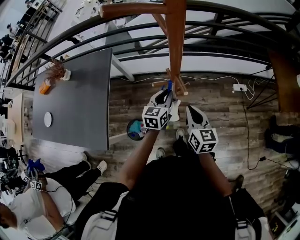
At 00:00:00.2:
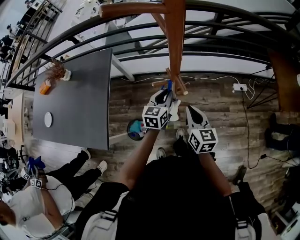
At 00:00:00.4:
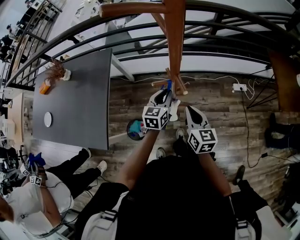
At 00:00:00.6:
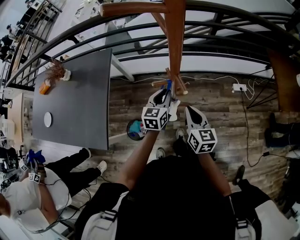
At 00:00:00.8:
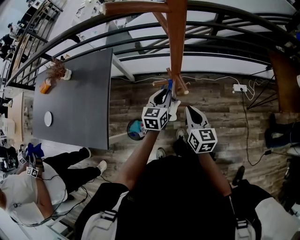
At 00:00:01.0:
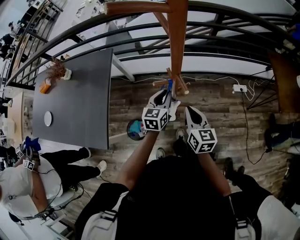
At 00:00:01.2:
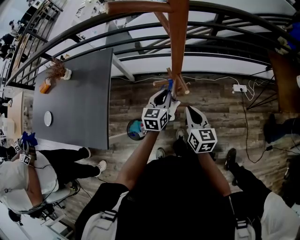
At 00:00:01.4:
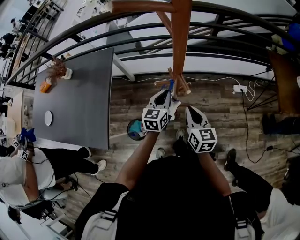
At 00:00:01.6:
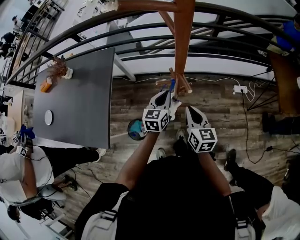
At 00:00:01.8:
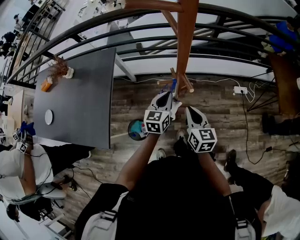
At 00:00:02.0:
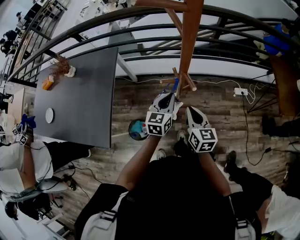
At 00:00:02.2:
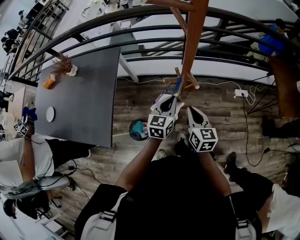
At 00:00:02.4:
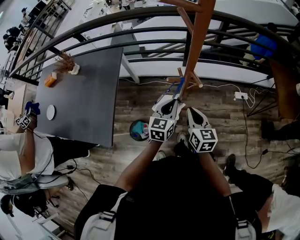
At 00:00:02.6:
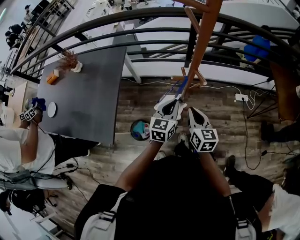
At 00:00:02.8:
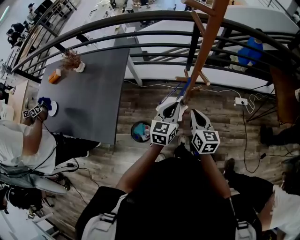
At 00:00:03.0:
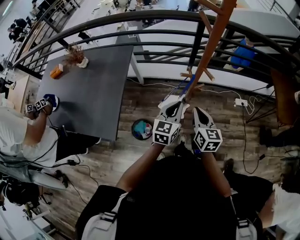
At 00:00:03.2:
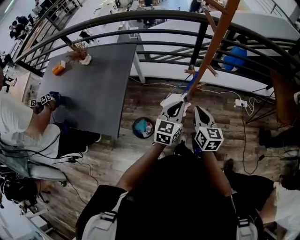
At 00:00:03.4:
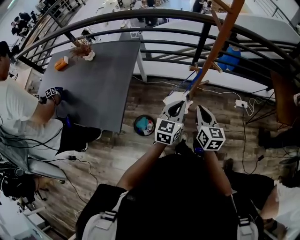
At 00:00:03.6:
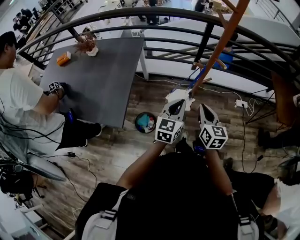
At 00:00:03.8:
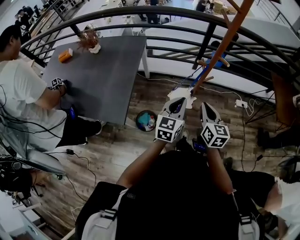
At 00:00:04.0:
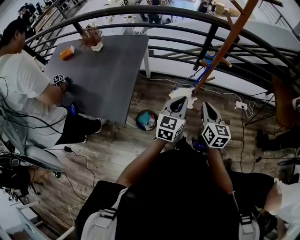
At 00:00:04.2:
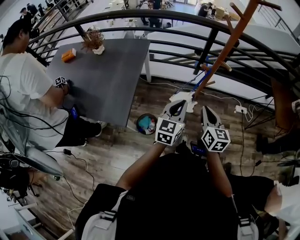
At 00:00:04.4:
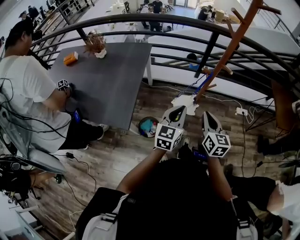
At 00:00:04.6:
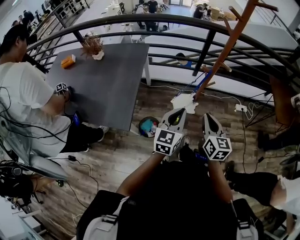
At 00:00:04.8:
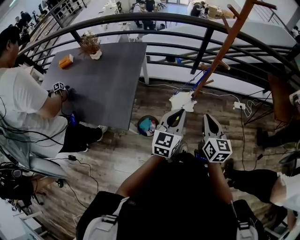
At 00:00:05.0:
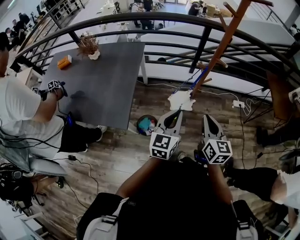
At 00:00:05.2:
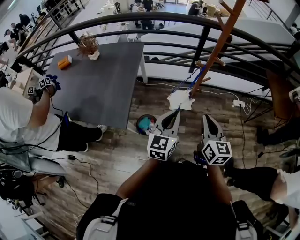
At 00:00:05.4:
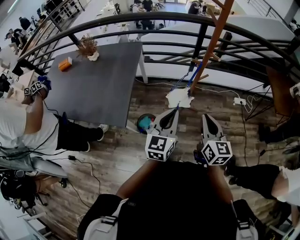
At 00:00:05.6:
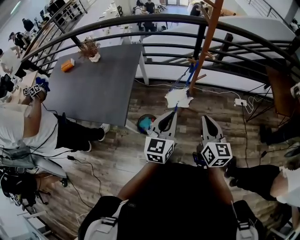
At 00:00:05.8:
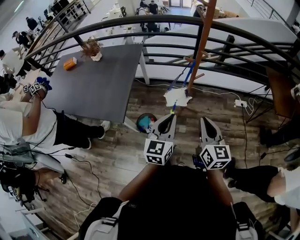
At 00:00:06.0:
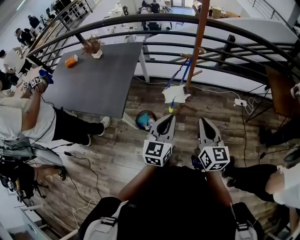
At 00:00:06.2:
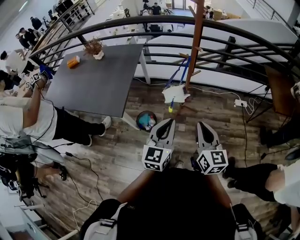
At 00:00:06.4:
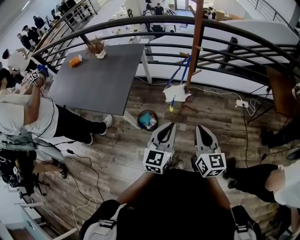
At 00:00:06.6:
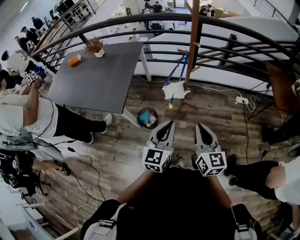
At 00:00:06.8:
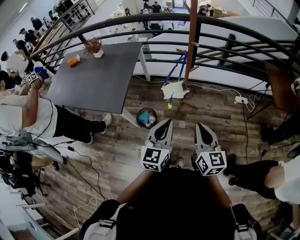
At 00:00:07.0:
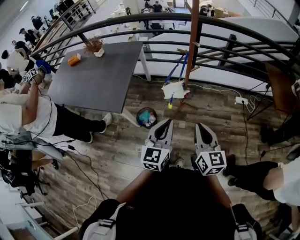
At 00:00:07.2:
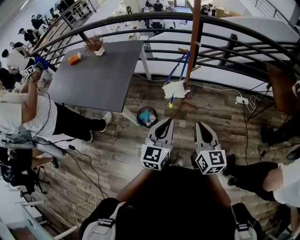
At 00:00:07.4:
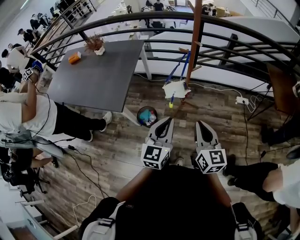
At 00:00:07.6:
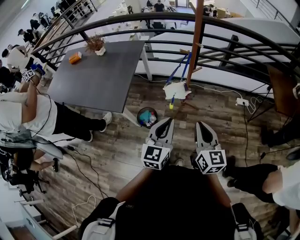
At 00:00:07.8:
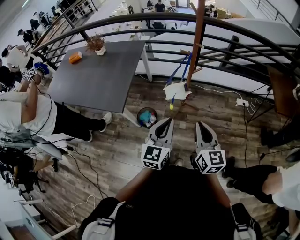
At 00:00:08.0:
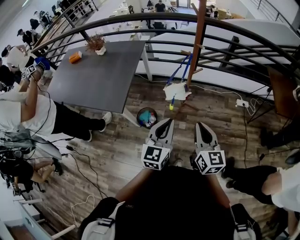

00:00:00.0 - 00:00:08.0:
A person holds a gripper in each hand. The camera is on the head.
00:00:00.0 - 00:00:01.6: The grippers move only a little.
00:00:01.6 - 00:00:03.2: The left gripper shifts approximately 15 cm backward and upward; the right gripper is displaced backward and to the left by about 10 cm.
00:00:03.2 - 00:00:04.8: The left gripper is displaced backward, to the left and upward by roughly 15 cm; the right gripper shifts about 10 cm backward and upward.
00:00:04.8 - 00:00:06.4: Both grippers travel together backward and to the right, approximately 15 cm.
00:00:06.4 - 00:00:08.0: The grippers stay close to where they were, moving slightly.

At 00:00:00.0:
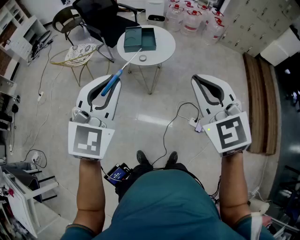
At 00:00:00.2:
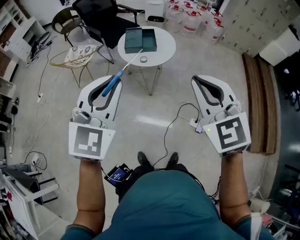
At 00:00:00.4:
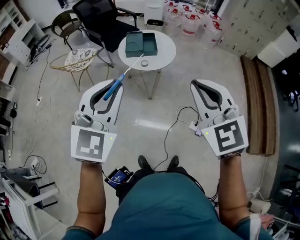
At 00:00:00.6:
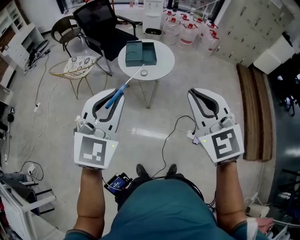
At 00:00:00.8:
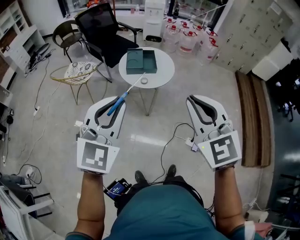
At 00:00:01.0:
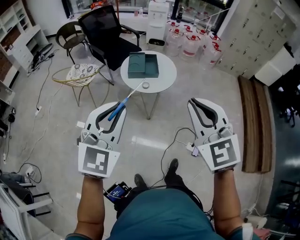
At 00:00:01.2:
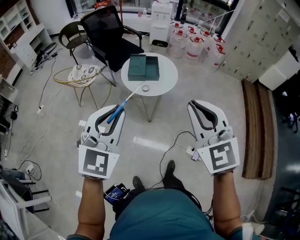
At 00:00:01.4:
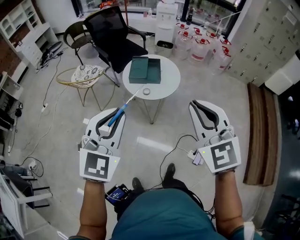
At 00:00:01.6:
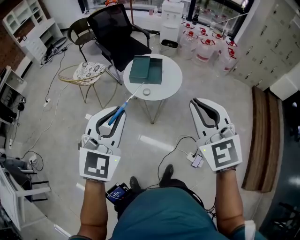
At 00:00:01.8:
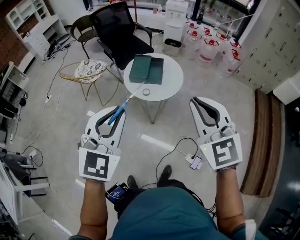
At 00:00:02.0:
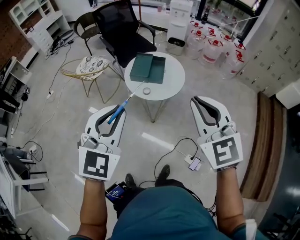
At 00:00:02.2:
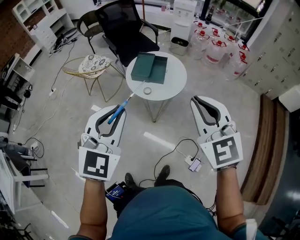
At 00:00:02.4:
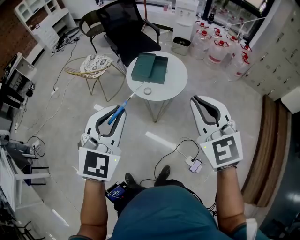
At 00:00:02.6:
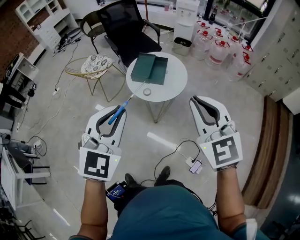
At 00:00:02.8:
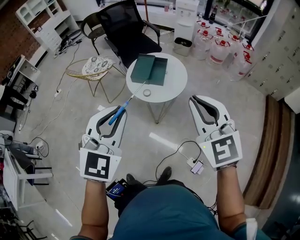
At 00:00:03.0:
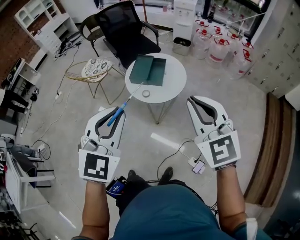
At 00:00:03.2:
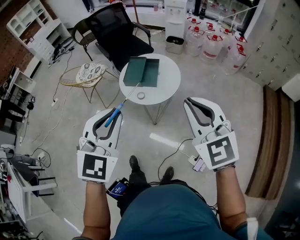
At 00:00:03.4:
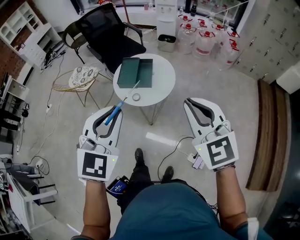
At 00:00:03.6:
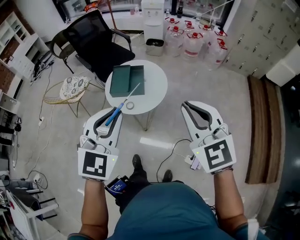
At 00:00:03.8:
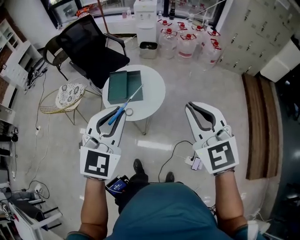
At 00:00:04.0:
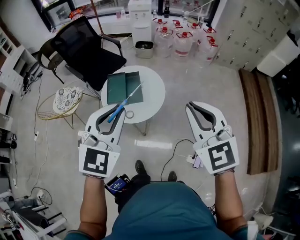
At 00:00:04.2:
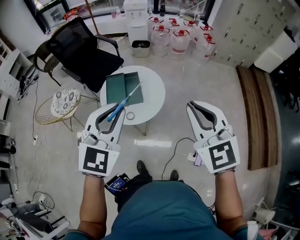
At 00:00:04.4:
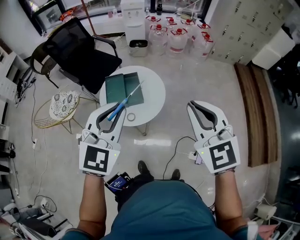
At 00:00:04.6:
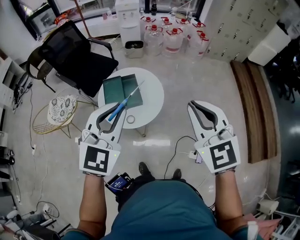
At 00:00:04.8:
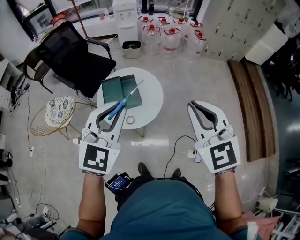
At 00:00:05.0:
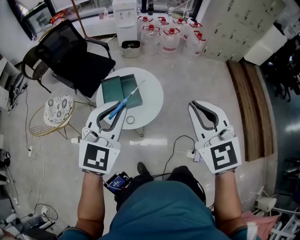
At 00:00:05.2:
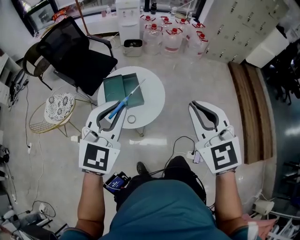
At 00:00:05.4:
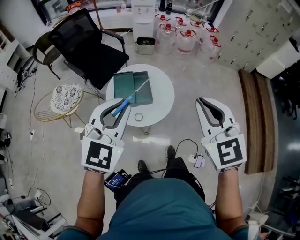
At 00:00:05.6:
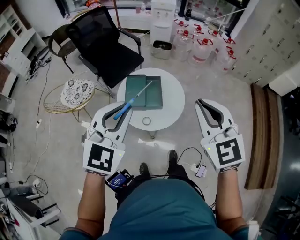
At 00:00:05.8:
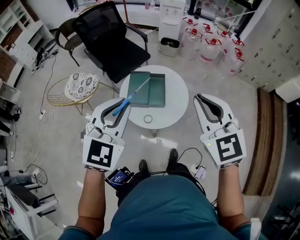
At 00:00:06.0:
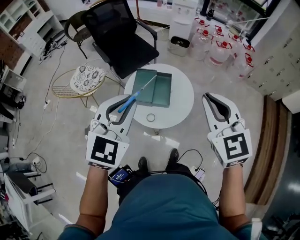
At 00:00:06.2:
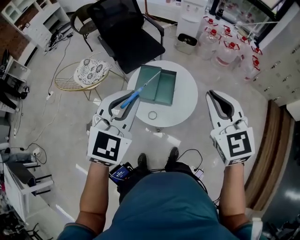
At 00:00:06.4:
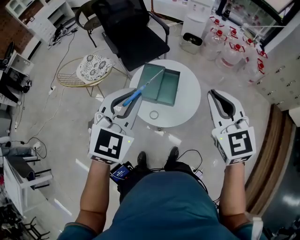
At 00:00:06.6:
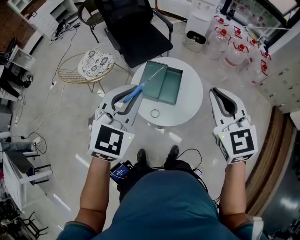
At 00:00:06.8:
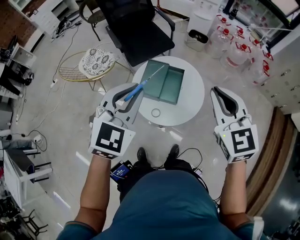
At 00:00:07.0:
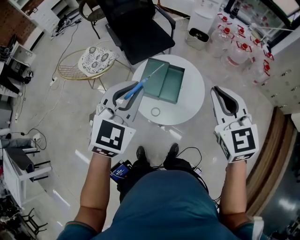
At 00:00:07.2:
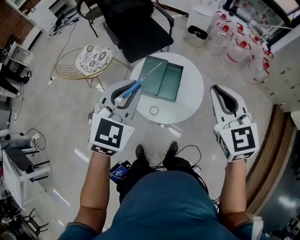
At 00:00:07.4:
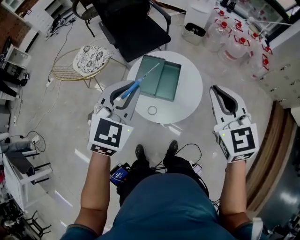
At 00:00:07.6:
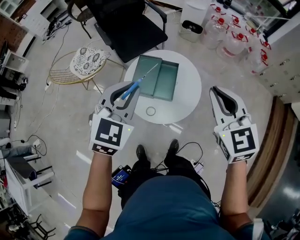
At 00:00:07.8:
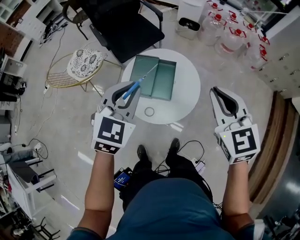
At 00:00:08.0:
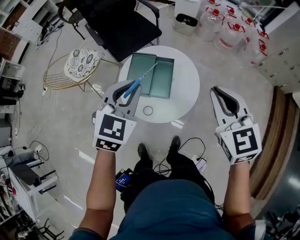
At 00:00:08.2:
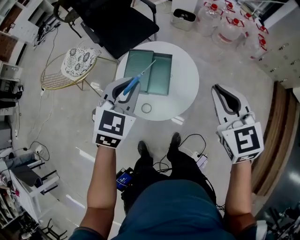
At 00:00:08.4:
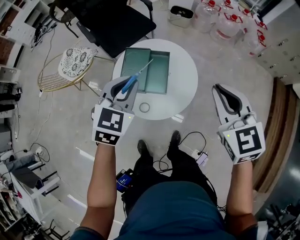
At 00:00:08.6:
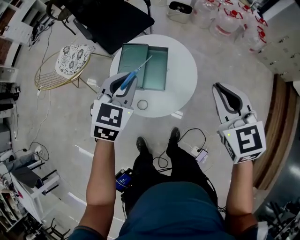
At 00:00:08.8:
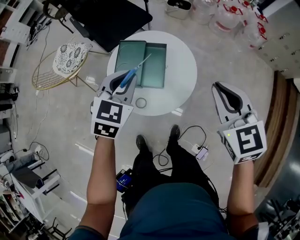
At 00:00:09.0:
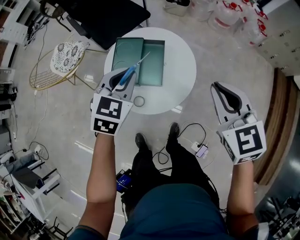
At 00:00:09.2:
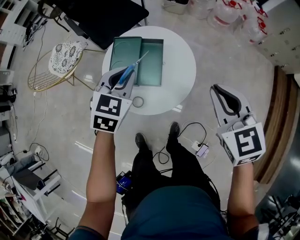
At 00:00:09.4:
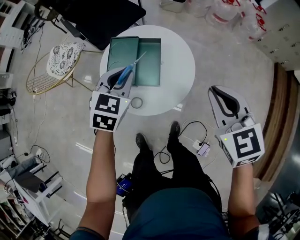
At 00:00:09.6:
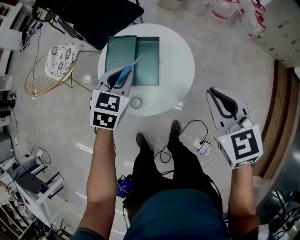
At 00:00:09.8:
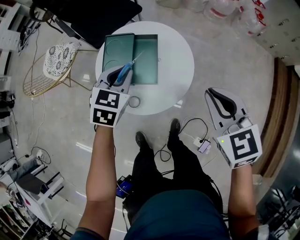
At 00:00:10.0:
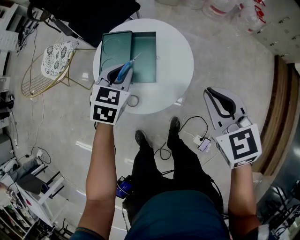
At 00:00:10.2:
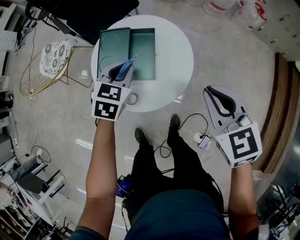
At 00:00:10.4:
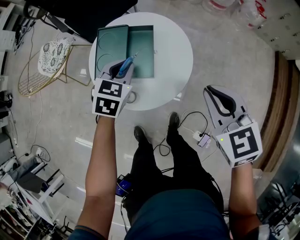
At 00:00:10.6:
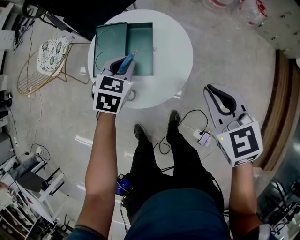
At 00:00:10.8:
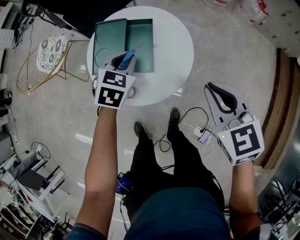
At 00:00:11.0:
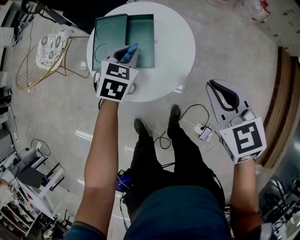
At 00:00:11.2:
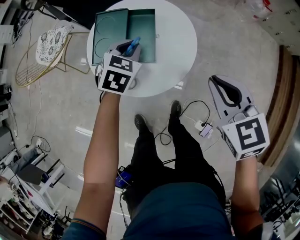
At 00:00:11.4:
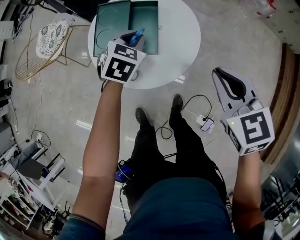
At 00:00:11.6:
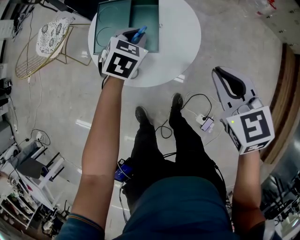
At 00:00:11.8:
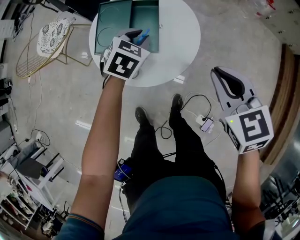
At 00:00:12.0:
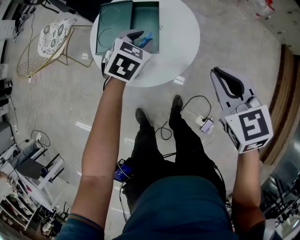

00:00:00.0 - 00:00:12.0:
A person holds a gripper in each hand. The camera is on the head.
00:00:00.0 - 00:00:01.6: The left gripper shifts roughly 15 cm forward and to the right; the right gripper heads forward, covering some 20 cm.
00:00:01.6 - 00:00:03.0: Both grippers travel together to the right and forward, some 15 cm.
00:00:03.0 - 00:00:04.4: The right gripper moves some 15 cm, and turns by about 30 degrees, while the left gripper moves approximately 25 cm, and turns by approximately 30 degrees.
00:00:04.4 - 00:00:06.0: The left gripper travels forward and to the left by about 10 cm, while the right gripper is displaced forward by roughly 15 cm.
00:00:06.0 - 00:00:07.6: Both grippers travel together forward and downward, some 15 cm.
00:00:07.6 - 00:00:09.0: The right gripper travels downward and to the right by some 15 cm. The left gripper goes approximately 20 cm downward and forward.
00:00:09.0 - 00:00:10.4: The grippers both shift downward by some 15 cm.
00:00:10.4 - 00:00:12.0: The left gripper changes place by roughly 5 cm.

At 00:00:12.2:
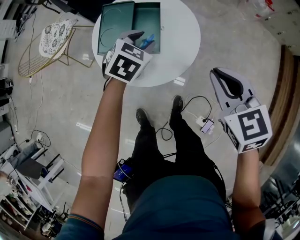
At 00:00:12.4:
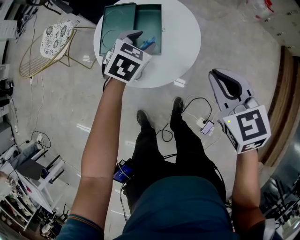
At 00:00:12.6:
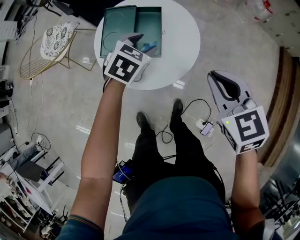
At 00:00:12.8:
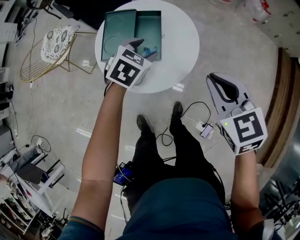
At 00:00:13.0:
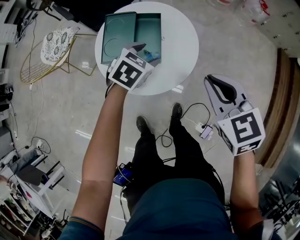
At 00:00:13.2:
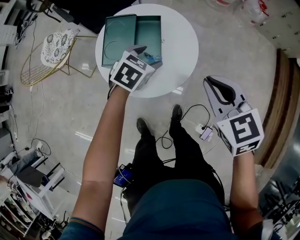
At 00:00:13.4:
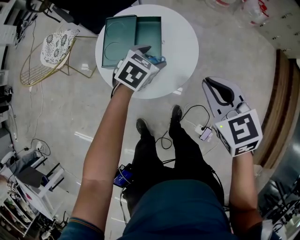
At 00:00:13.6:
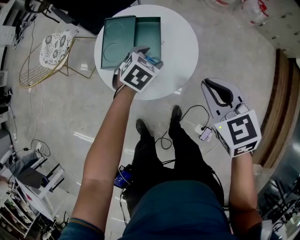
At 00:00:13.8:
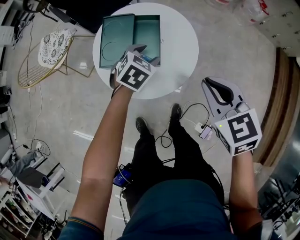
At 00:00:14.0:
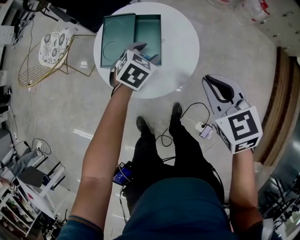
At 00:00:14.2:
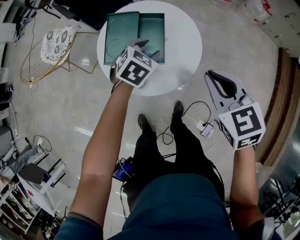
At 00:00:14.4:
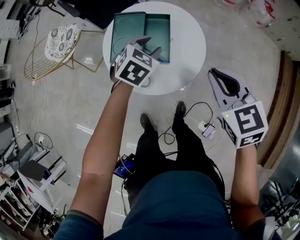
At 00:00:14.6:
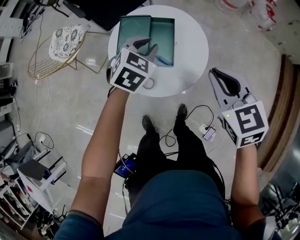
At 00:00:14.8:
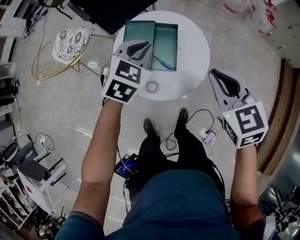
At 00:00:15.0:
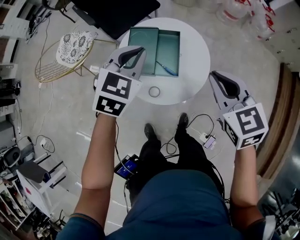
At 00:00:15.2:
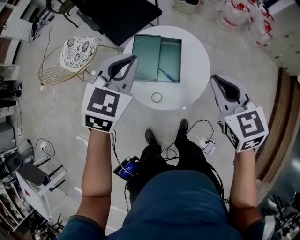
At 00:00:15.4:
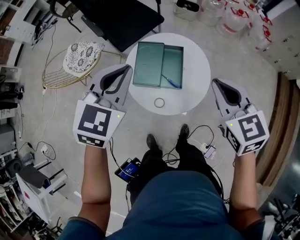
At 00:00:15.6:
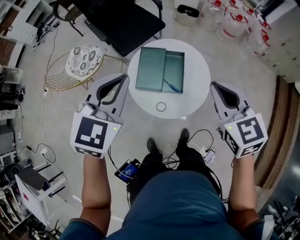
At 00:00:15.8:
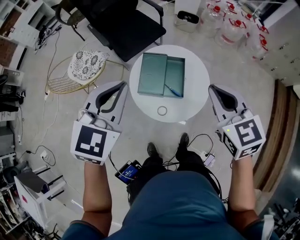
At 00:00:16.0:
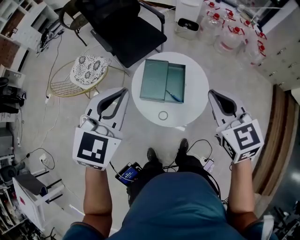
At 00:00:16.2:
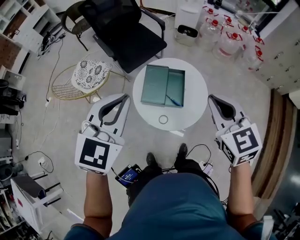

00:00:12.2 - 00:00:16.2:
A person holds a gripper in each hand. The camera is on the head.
00:00:12.2 - 00:00:13.6: The left gripper opens.
00:00:13.6 - 00:00:14.8: The right gripper travels upward by some 5 cm. Meanwhile the left gripper shifts some 20 cm upward and to the left, and closes up.
00:00:14.8 - 00:00:16.2: The left gripper heads upward, to the left and backward, covering some 35 cm; the right gripper travels upward and to the left by roughly 20 cm.
